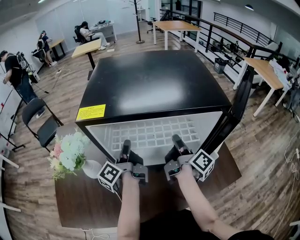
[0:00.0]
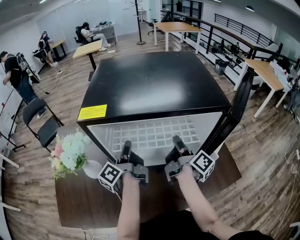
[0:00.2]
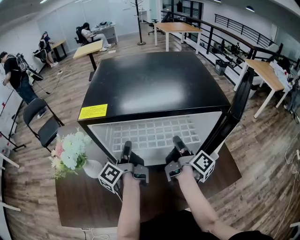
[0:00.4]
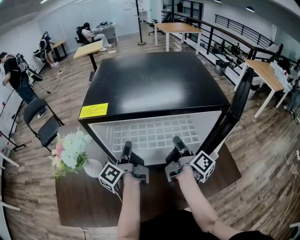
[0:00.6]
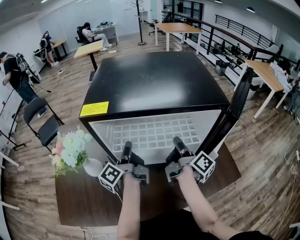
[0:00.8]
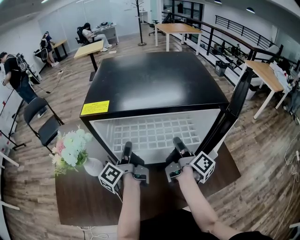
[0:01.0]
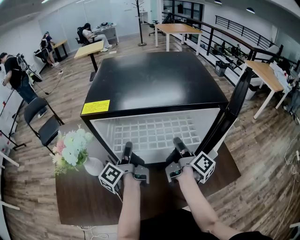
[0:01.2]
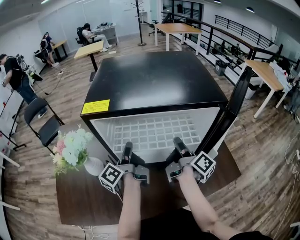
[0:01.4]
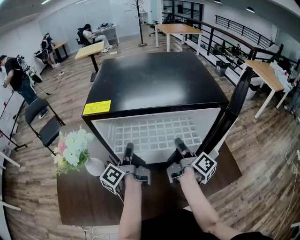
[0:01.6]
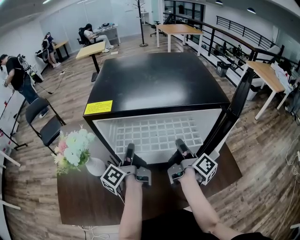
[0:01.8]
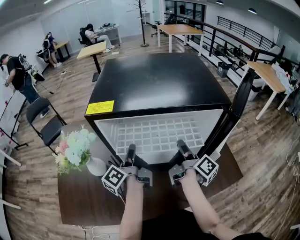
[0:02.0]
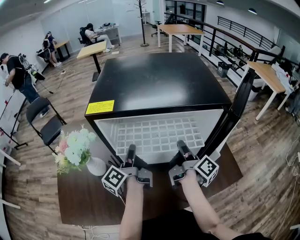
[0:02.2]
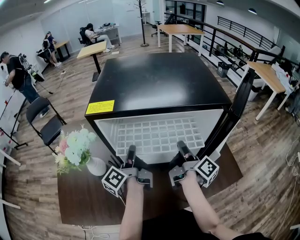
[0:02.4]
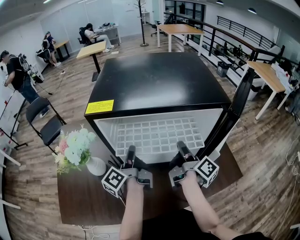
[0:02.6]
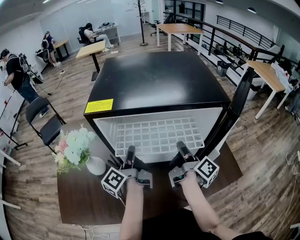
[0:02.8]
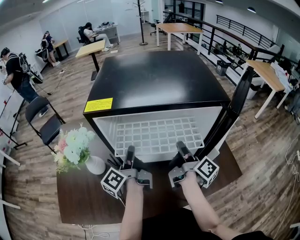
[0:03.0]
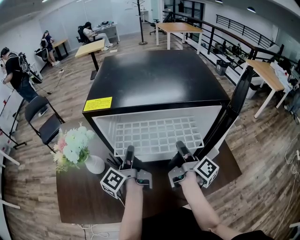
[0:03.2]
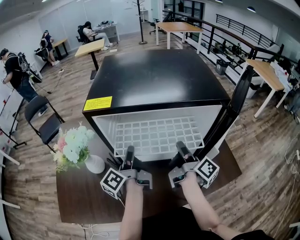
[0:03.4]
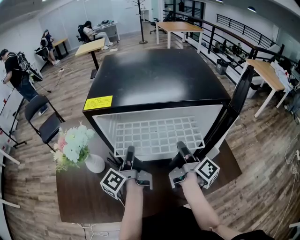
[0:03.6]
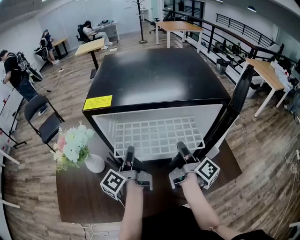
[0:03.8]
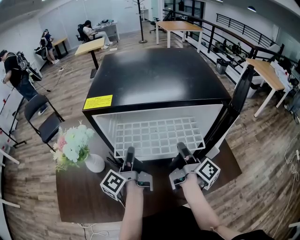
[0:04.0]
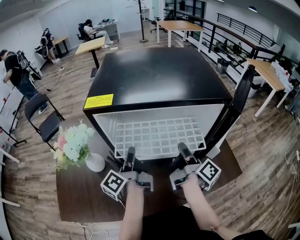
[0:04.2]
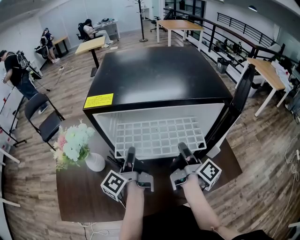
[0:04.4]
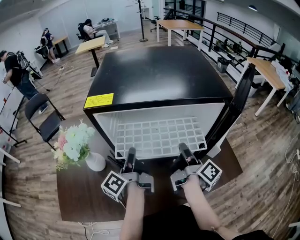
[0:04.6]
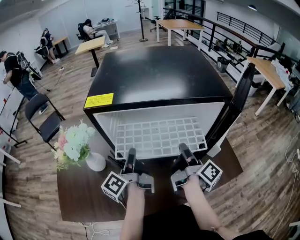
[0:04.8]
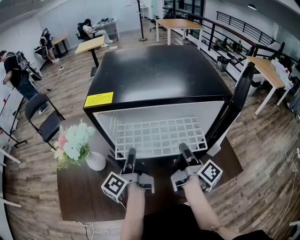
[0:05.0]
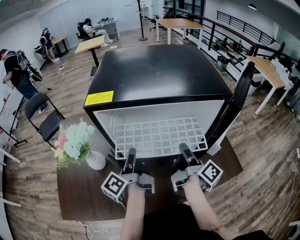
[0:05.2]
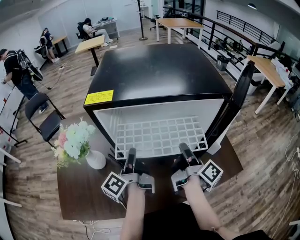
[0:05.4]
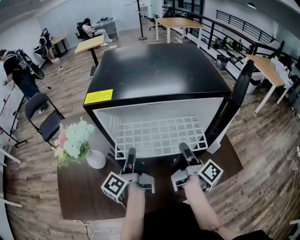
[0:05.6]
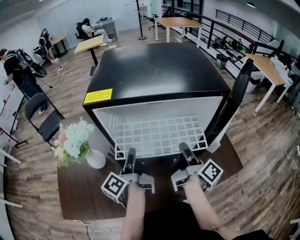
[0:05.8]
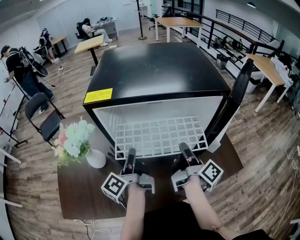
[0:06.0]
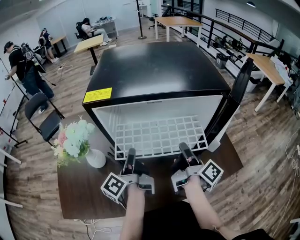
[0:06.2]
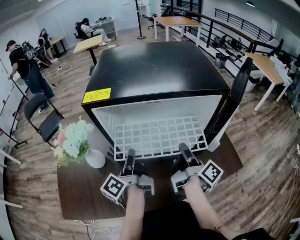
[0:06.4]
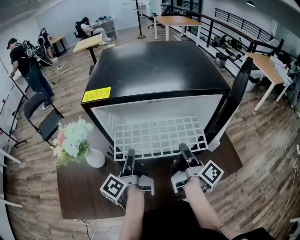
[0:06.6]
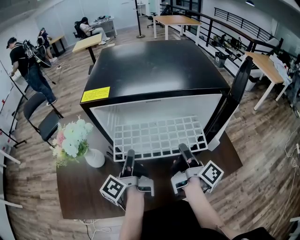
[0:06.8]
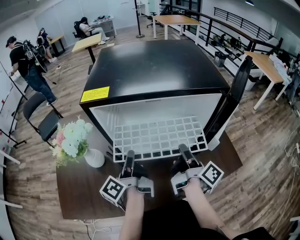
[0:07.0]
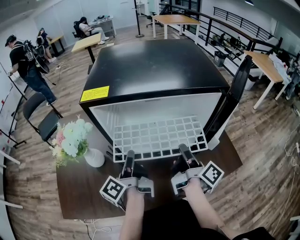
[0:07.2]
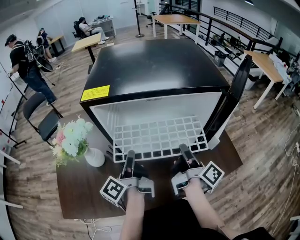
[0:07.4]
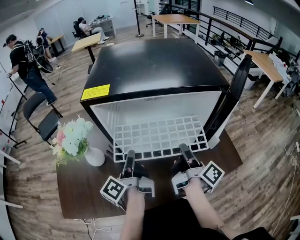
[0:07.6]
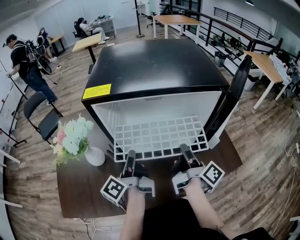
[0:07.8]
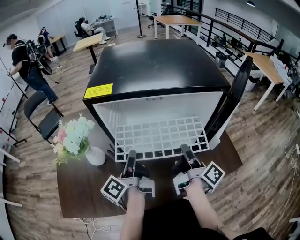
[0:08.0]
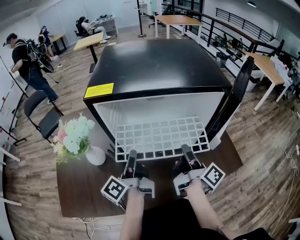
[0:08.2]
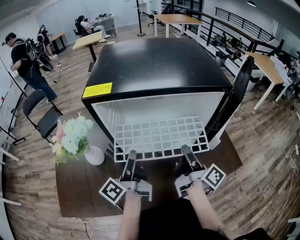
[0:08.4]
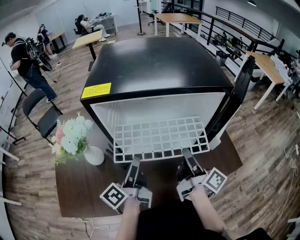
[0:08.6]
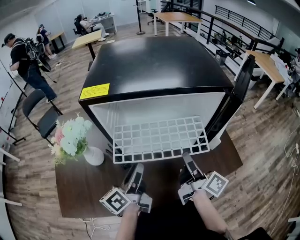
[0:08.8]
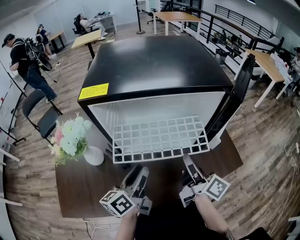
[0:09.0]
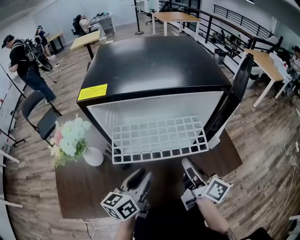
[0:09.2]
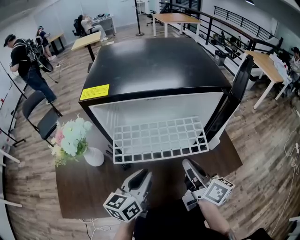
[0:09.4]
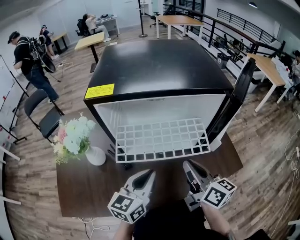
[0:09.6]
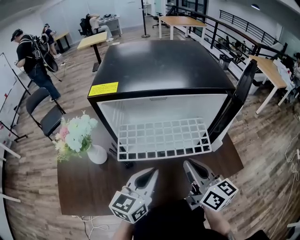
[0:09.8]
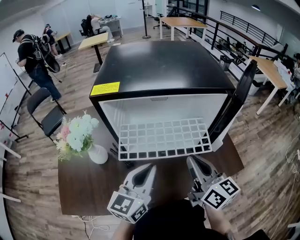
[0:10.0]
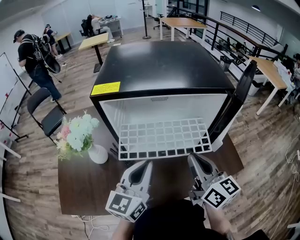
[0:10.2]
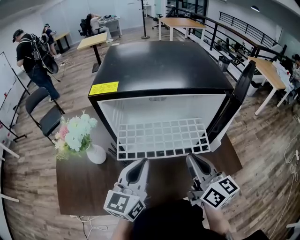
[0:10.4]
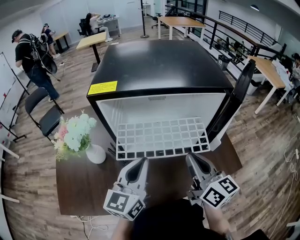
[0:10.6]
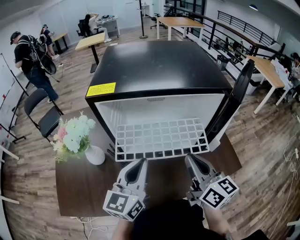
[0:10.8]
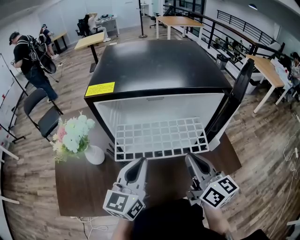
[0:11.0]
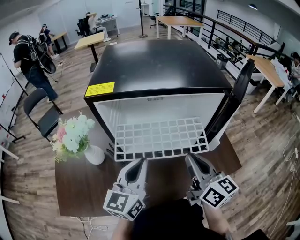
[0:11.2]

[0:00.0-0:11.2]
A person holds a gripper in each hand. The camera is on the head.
0:00.0 to 0:03.2: The grippers move only a little.
0:03.2 to 0:06.4: The grippers make only small movements.
0:06.4 to 0:08.0: The grippers stay close to where they were, moving slightly.
0:08.0 to 0:09.6: The right gripper is displaced backward by approximately 5 cm, and twists about 40 degrees counterclockwise, seen from behind. Meanwhile the left gripper goes roughly 10 cm to the right and backward, twists some 60 degrees clockwise, seen from behind, and opens, then closes once more.
0:09.6 to 0:11.2: The left gripper shifts about 5 cm upward.

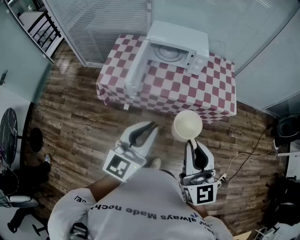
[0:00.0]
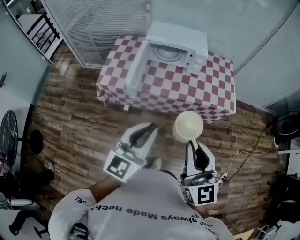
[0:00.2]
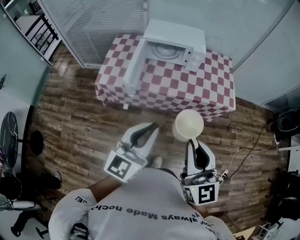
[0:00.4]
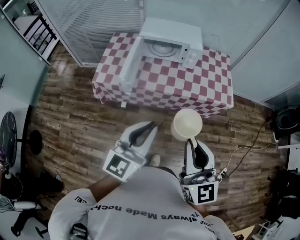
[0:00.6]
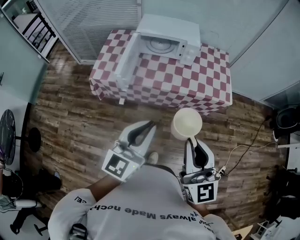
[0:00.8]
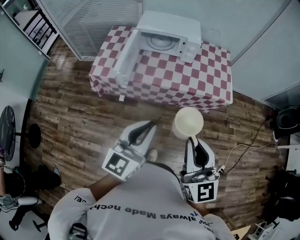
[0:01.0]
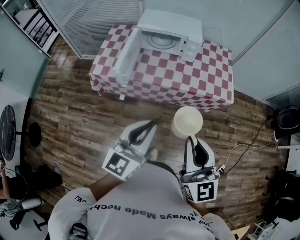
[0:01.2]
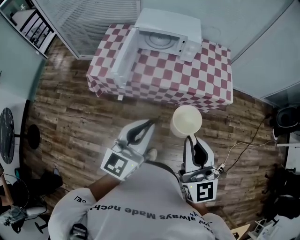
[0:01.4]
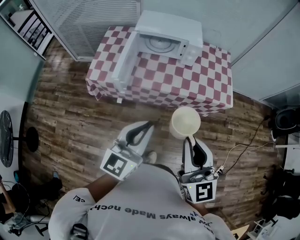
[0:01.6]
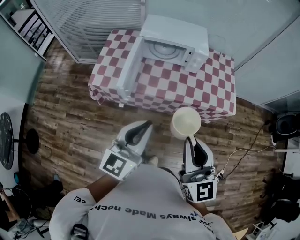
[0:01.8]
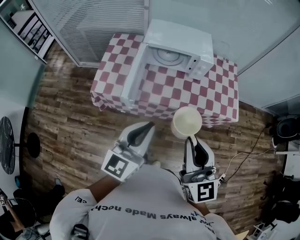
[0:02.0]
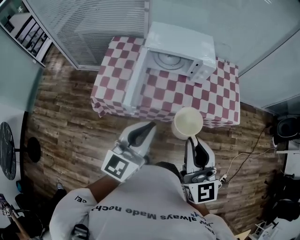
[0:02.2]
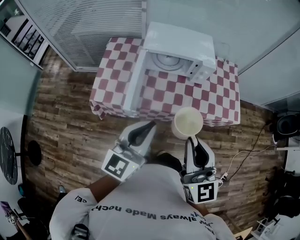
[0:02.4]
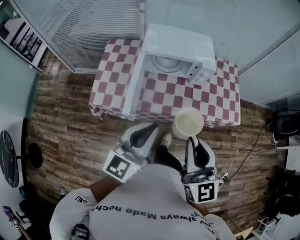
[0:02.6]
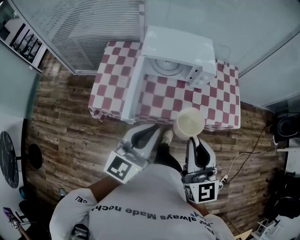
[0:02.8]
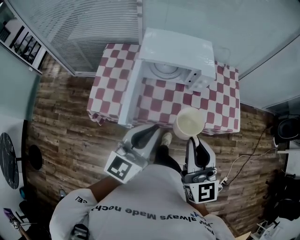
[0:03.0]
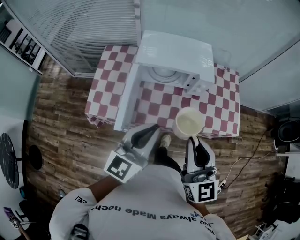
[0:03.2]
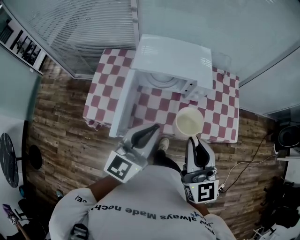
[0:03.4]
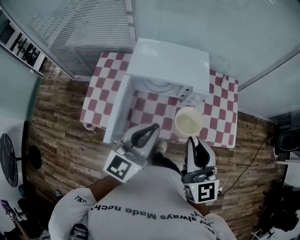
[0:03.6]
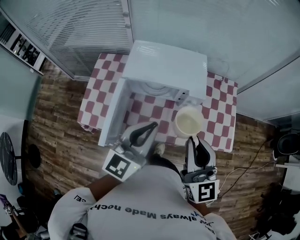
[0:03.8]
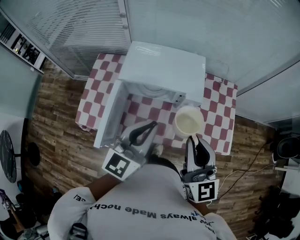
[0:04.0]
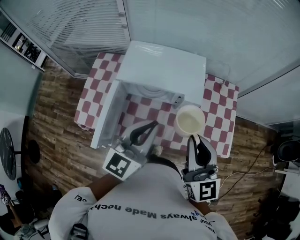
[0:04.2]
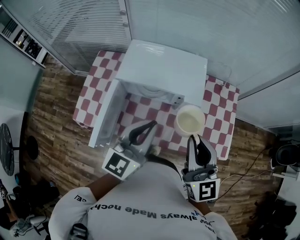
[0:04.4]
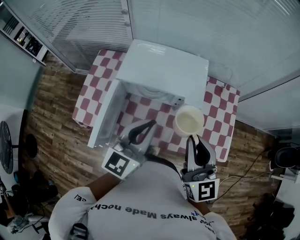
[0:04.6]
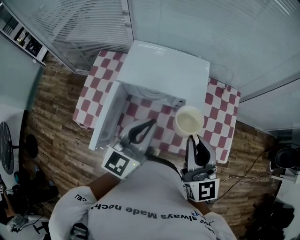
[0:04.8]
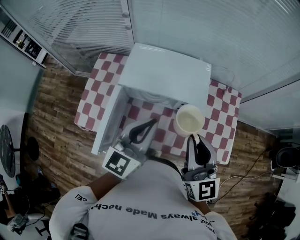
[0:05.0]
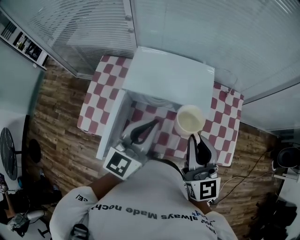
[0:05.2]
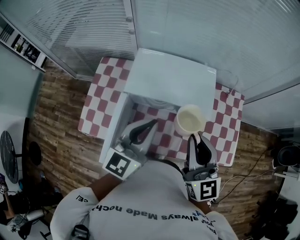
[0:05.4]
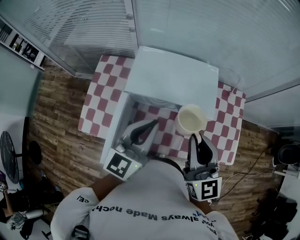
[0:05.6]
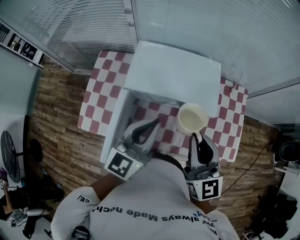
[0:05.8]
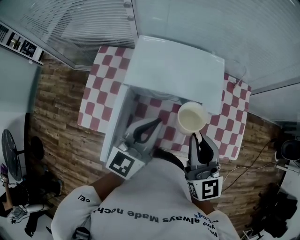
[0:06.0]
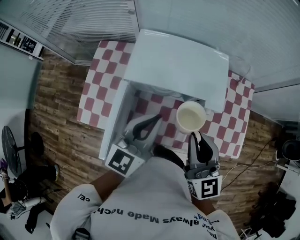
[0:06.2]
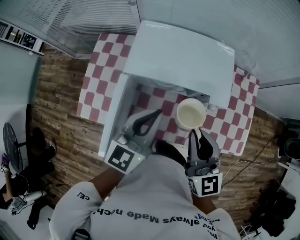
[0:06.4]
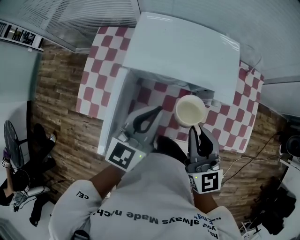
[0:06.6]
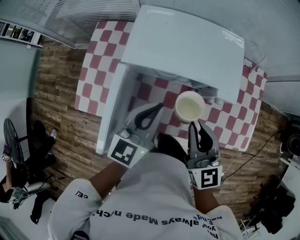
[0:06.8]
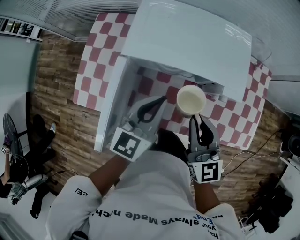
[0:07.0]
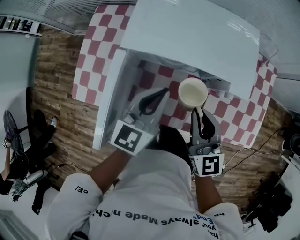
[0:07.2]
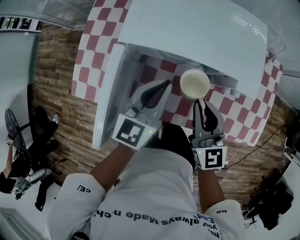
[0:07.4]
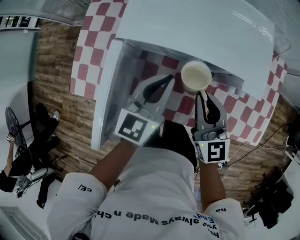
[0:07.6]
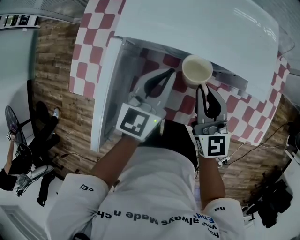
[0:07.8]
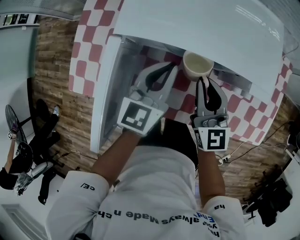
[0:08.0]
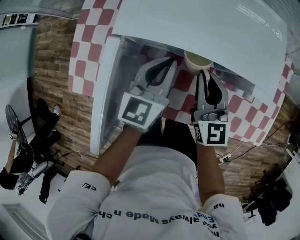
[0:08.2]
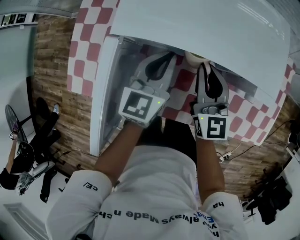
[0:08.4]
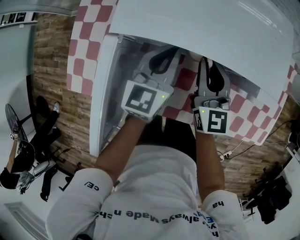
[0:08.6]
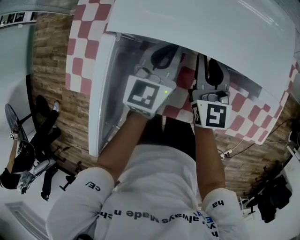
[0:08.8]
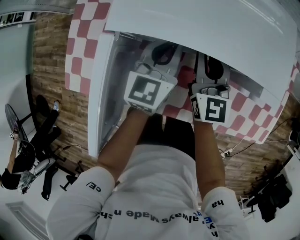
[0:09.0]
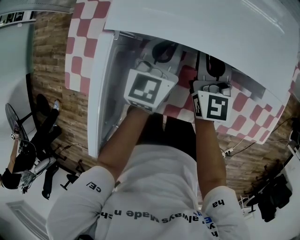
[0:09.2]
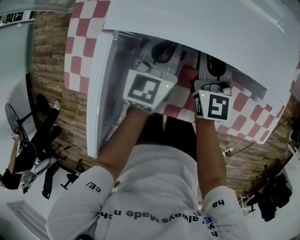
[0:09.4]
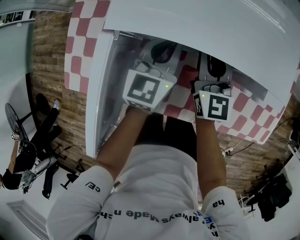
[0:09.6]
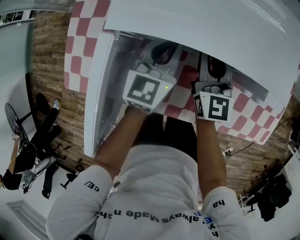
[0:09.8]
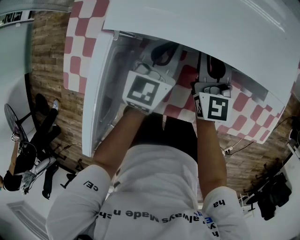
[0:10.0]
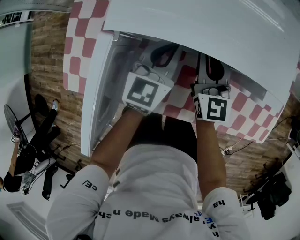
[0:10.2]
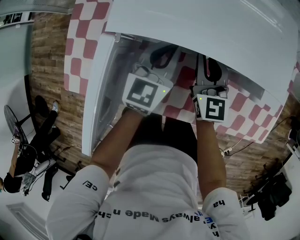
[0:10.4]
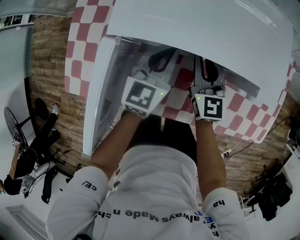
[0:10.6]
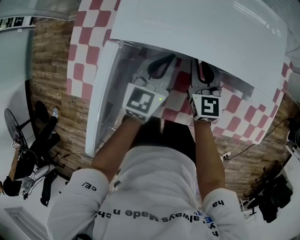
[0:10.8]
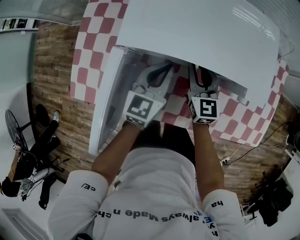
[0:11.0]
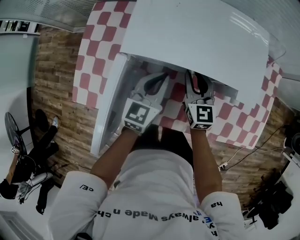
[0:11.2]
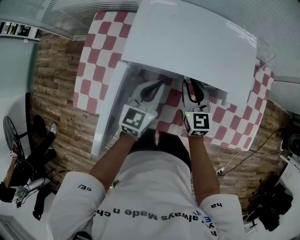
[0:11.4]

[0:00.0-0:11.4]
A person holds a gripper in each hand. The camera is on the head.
0:00.0 to 0:01.4: Both grippers travel together to the right, approximately 5 cm.
0:01.4 to 0:02.8: The two grippers go some 25 cm forward and to the left.
0:02.8 to 0:04.2: The two grippers go some 25 cm forward and to the right.
0:04.2 to 0:05.6: Both grippers travel together forward and to the left, approximately 10 cm.
0:05.6 to 0:07.2: Both grippers travel together downward, about 20 cm.
0:07.2 to 0:08.6: The right gripper is displaced forward and downward by about 15 cm. The left gripper travels downward and forward by roughly 15 cm.
0:08.6 to 0:10.0: The grippers move only a little.
0:10.0 to 0:11.4: The right gripper shifts by some 5 cm, while the left gripper heads upward and backward, covering roughly 10 cm.

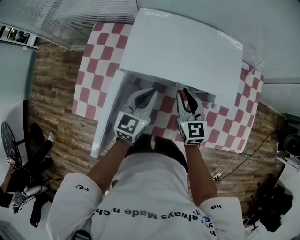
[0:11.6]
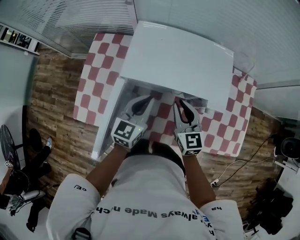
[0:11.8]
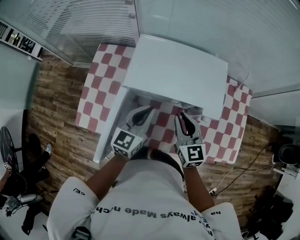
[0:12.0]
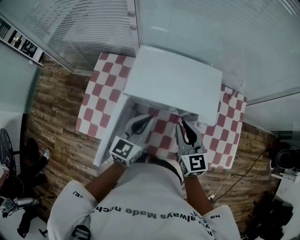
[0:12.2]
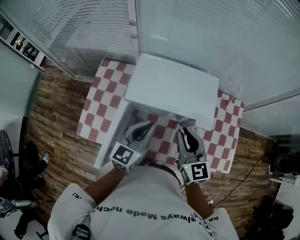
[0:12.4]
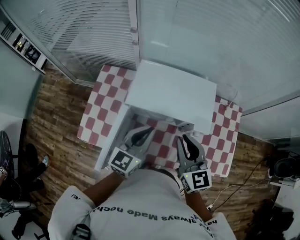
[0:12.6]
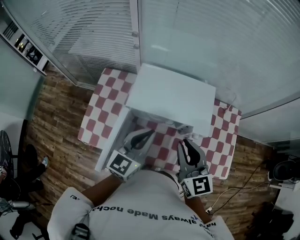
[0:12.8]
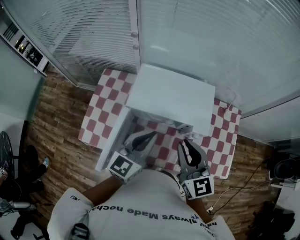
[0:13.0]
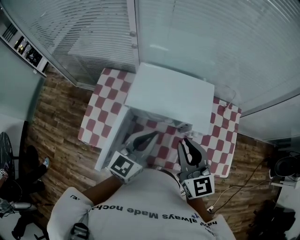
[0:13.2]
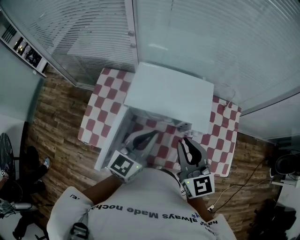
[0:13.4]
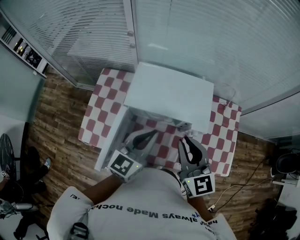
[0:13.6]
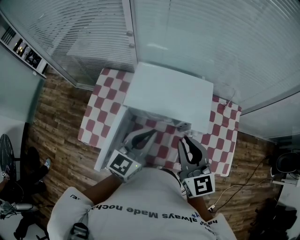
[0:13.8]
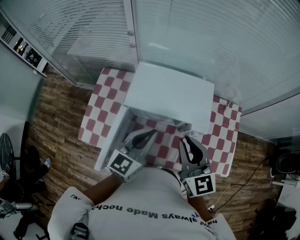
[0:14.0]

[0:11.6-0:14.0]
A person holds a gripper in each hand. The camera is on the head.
0:11.6 to 0:12.8: The grippers both shift upward by roughly 20 cm.
0:12.8 to 0:14.0: The grippers move only a little.
